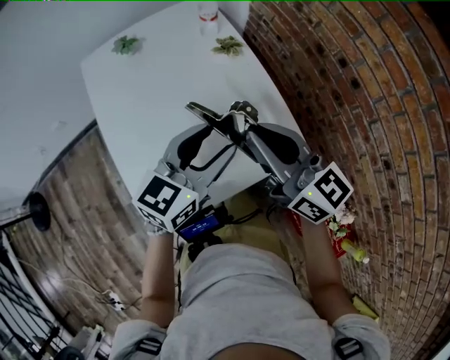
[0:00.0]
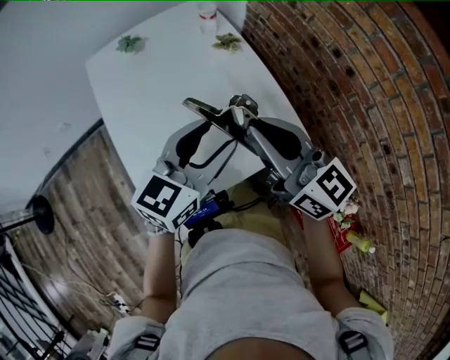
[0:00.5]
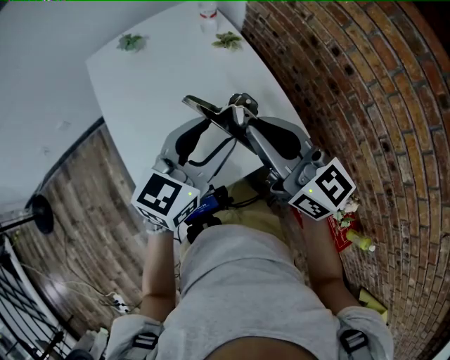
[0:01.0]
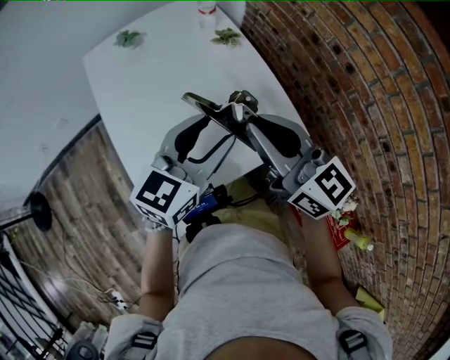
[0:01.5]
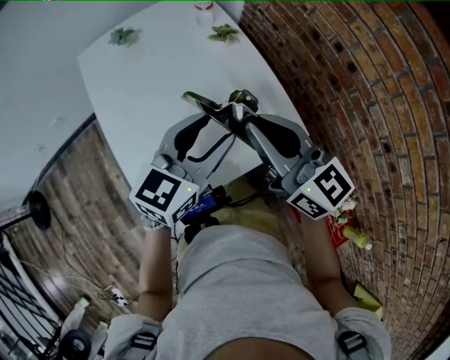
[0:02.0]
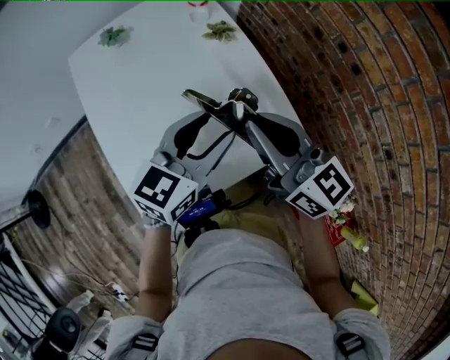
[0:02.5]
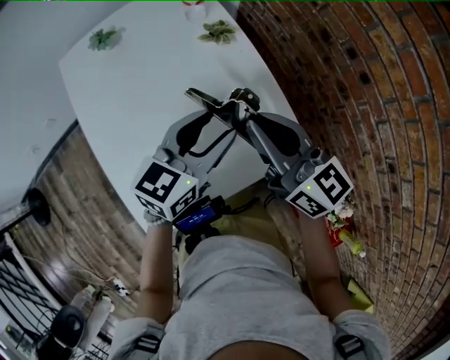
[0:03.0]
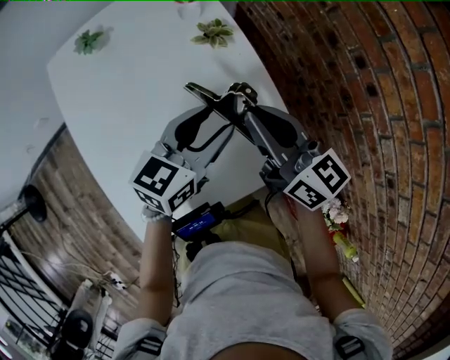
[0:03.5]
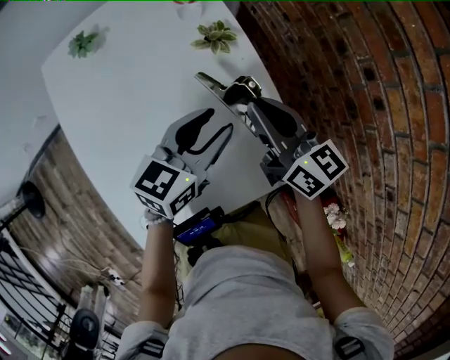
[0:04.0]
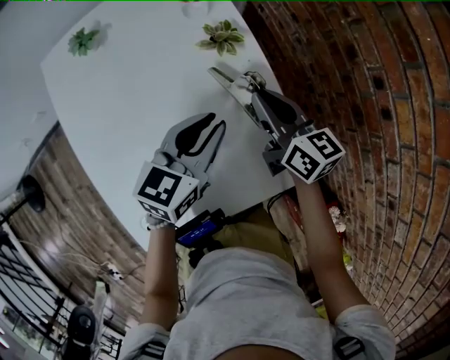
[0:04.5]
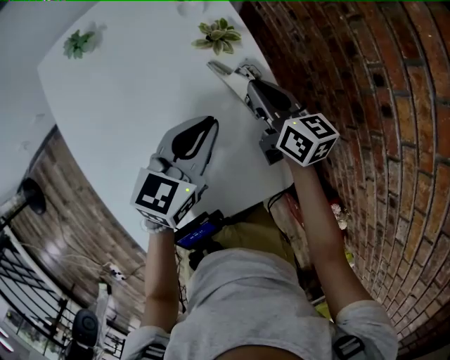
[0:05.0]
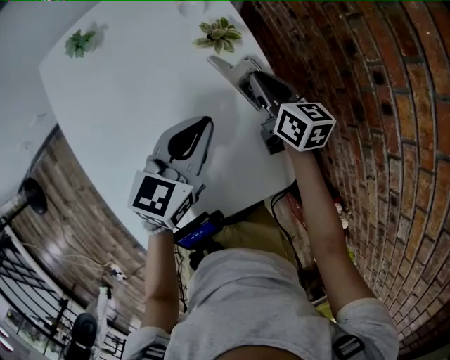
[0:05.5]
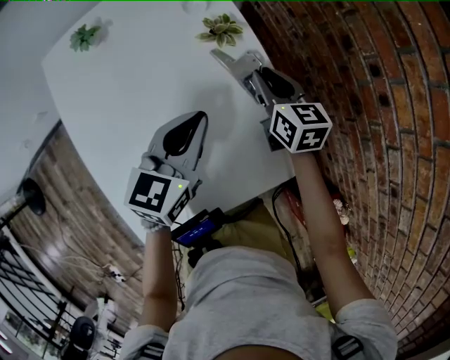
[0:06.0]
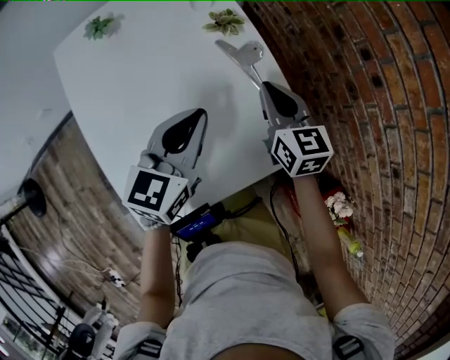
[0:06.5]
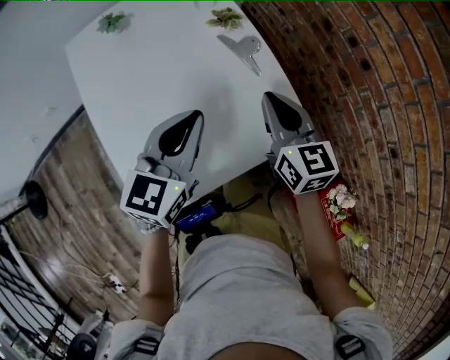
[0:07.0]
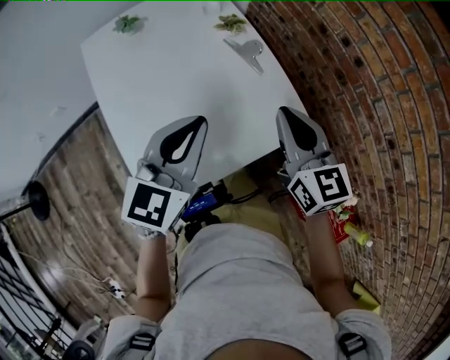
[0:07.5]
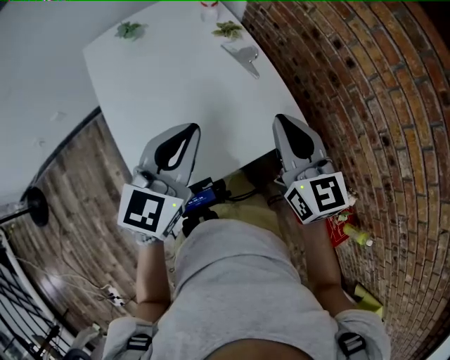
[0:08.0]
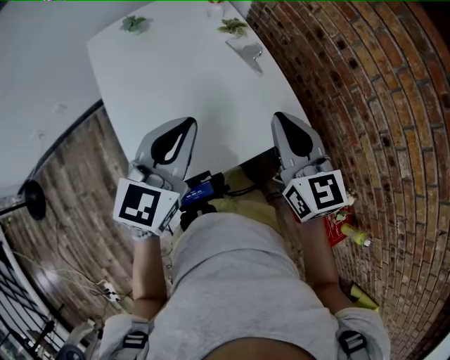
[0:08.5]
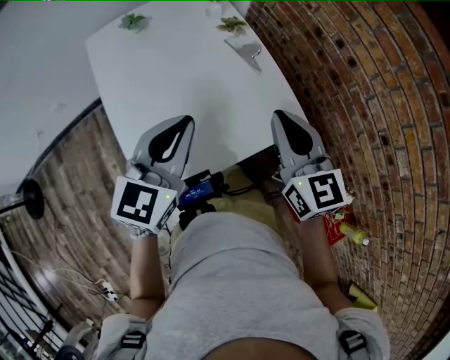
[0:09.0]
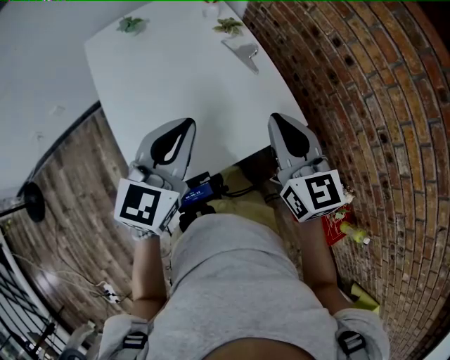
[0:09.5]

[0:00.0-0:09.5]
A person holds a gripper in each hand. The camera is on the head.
0:00.0 to 0:02.0: The grippers stay close to where they were, moving slightly.
0:02.0 to 0:04.0: Both grippers travel together forward and downward, about 20 cm.
0:04.0 to 0:05.5: The left gripper closes its fingers. Meanwhile the right gripper shifts some 15 cm downward and forward.
0:05.5 to 0:07.5: Both grippers travel together backward and upward, approximately 25 cm. The right gripper swivels about 30 degrees; the left gripper turns by about 20 degrees.
0:07.5 to 0:09.5: The grippers stay close to where they were, moving slightly.

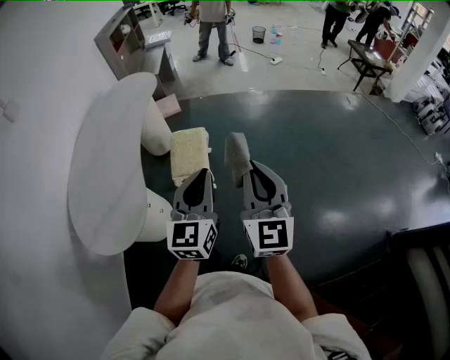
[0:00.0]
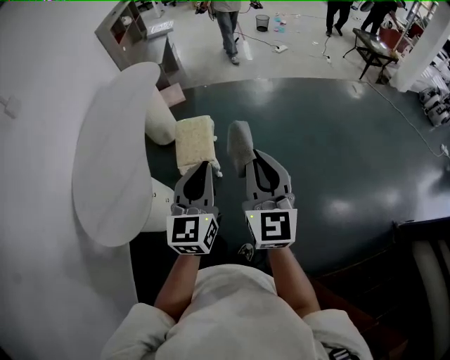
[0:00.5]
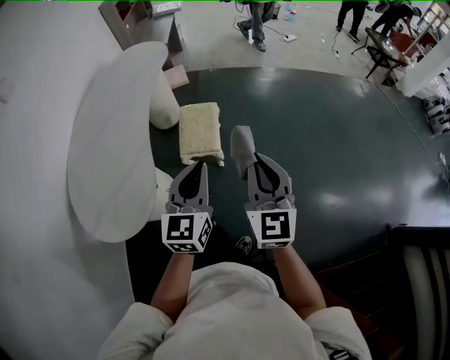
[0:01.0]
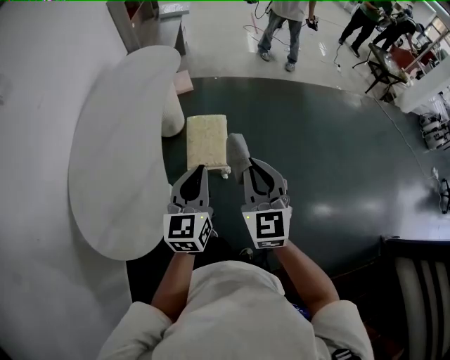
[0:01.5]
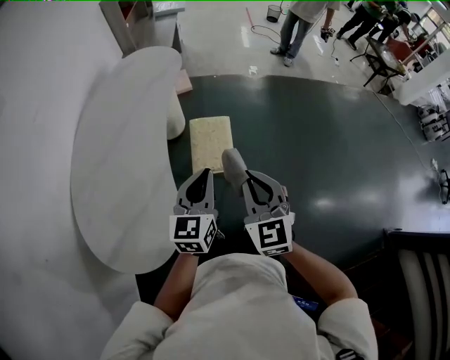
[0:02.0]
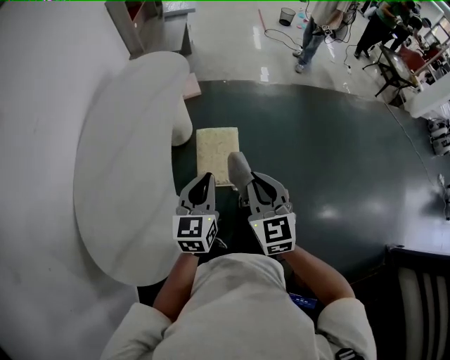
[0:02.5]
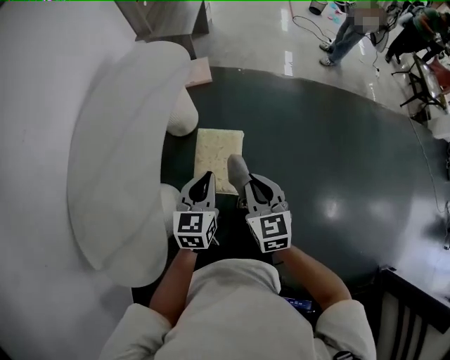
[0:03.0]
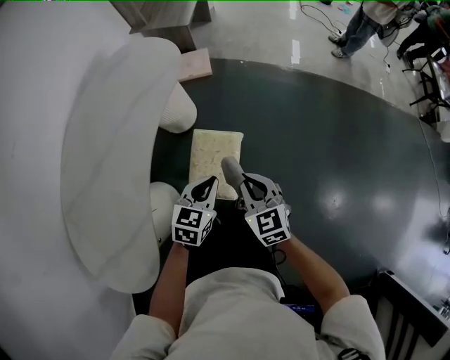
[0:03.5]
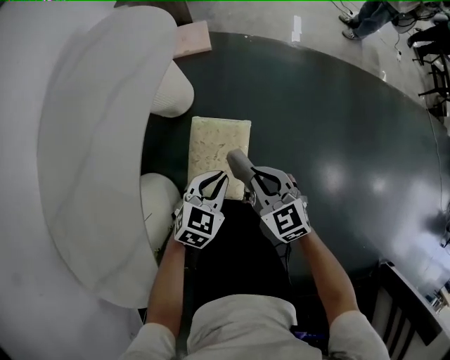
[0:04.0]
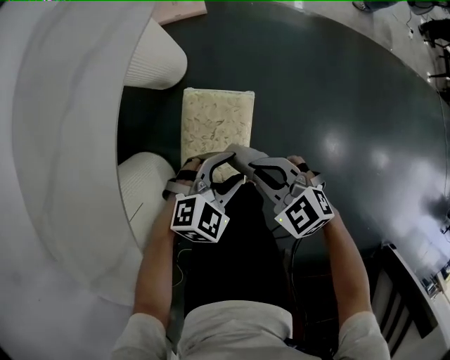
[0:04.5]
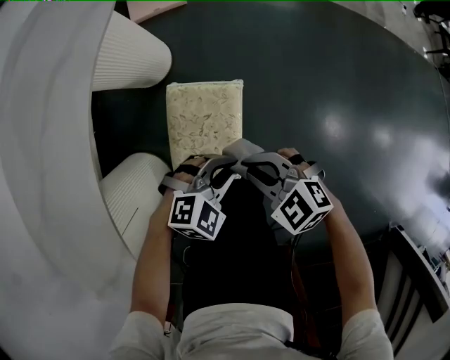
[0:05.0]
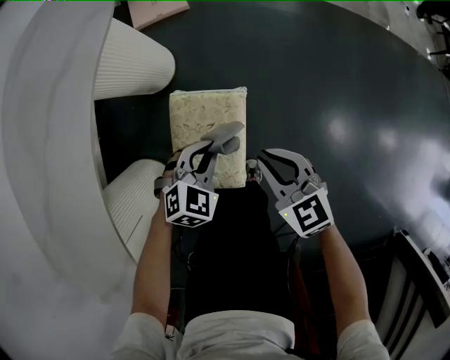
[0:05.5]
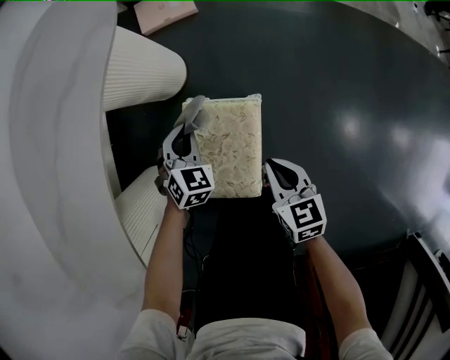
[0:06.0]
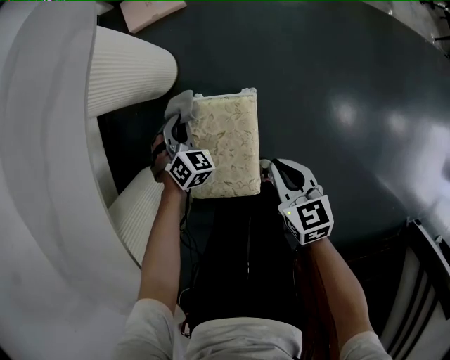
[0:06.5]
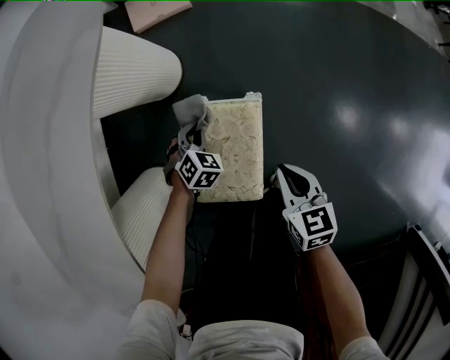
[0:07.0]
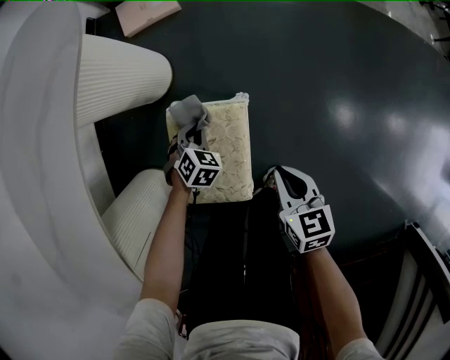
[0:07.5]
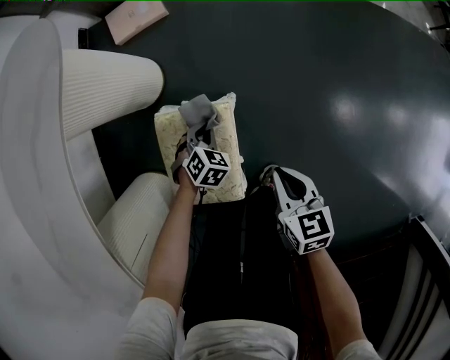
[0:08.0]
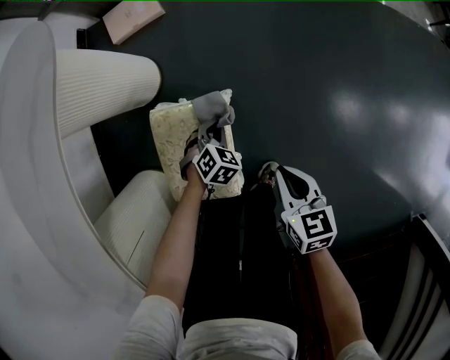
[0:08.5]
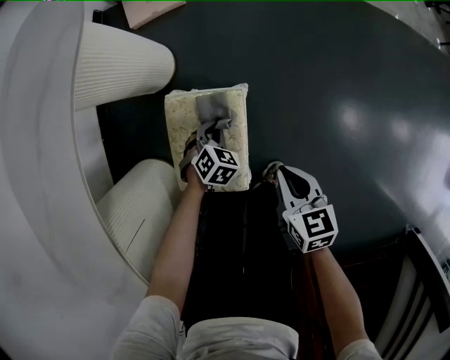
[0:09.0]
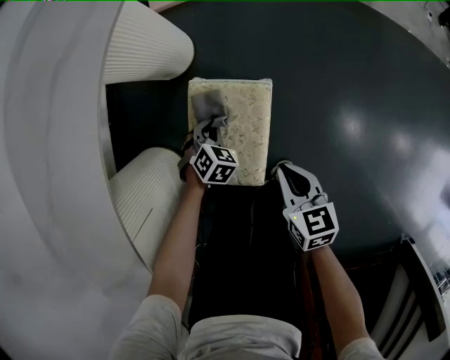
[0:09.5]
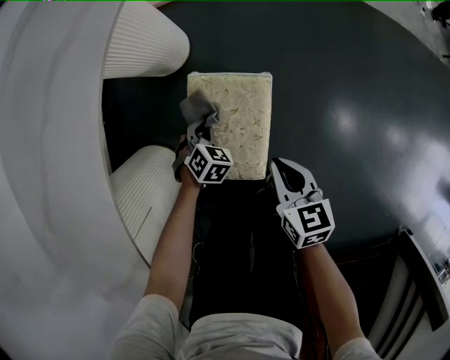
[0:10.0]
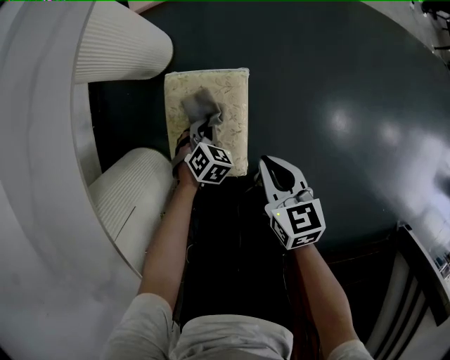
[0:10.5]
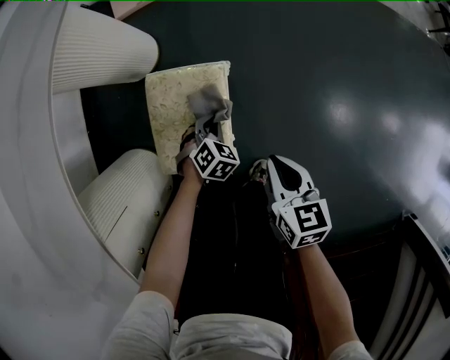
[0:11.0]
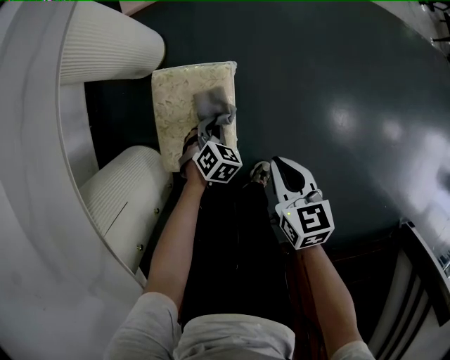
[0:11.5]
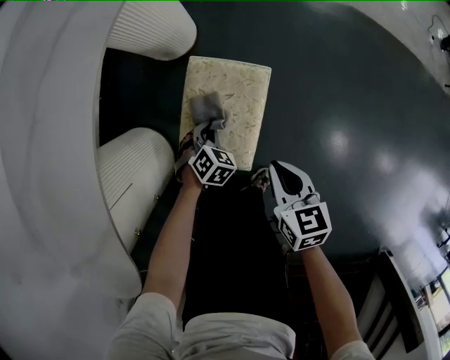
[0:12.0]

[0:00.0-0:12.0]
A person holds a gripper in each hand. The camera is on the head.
0:00.0 to 0:02.0: The grippers both shift to the left, forward and downward by approximately 30 cm. The right gripper changes its angle by some 20 degrees.
0:02.0 to 0:04.0: The left gripper is displaced downward and forward by some 40 cm, and points its fingers some 30 degrees further downward. The right gripper goes about 50 cm forward and downward, and turns by roughly 30 degrees.
0:04.0 to 0:06.0: Both grippers move downward, roughly 20 cm. The right gripper turns by about 30 degrees. The left gripper swivels about 30 degrees, and opens, then closes again.
0:06.0 to 0:08.0: The left gripper is displaced downward and to the right by approximately 15 cm, and turns by roughly 20 degrees. Meanwhile the right gripper goes roughly 10 cm to the right.
0:08.0 to 0:10.0: The grippers both shift to the left by roughly 15 cm.
0:10.0 to 0:12.0: The left gripper travels backward by roughly 5 cm, and travels to the right and back again, roughly 15 cm each way. The right gripper reaches some 10 cm to the right, then returns.

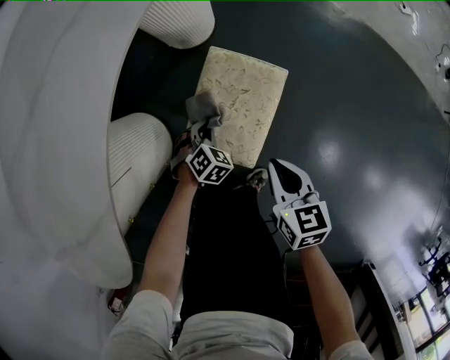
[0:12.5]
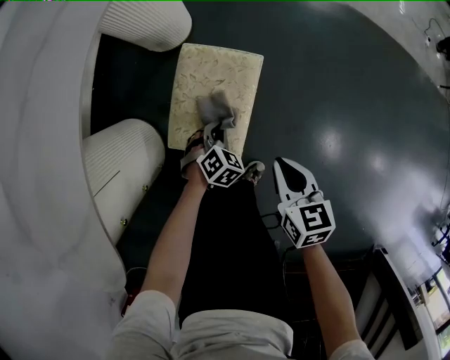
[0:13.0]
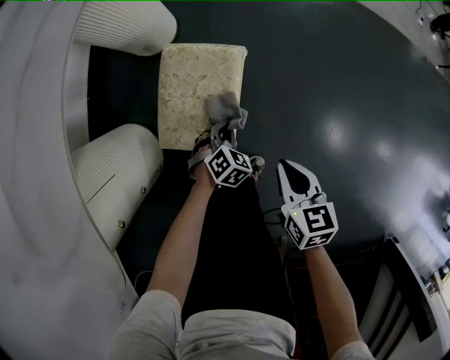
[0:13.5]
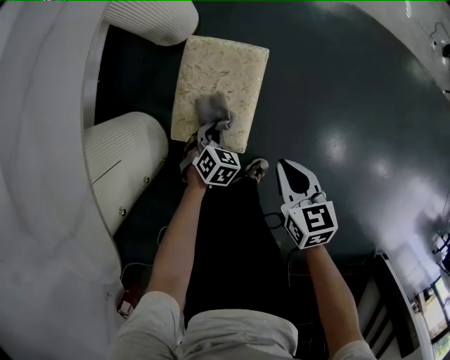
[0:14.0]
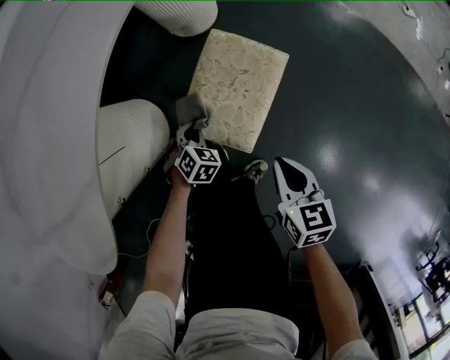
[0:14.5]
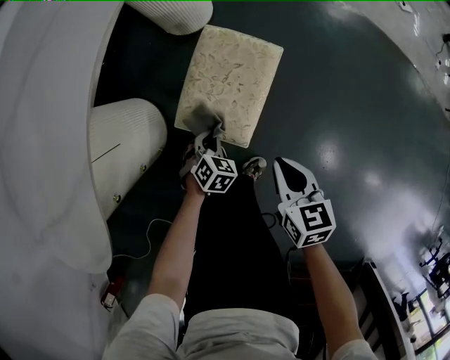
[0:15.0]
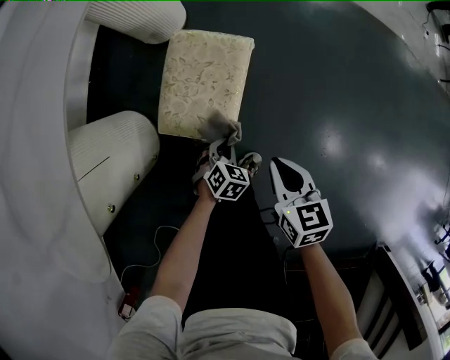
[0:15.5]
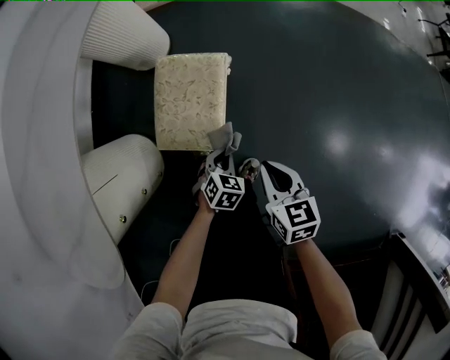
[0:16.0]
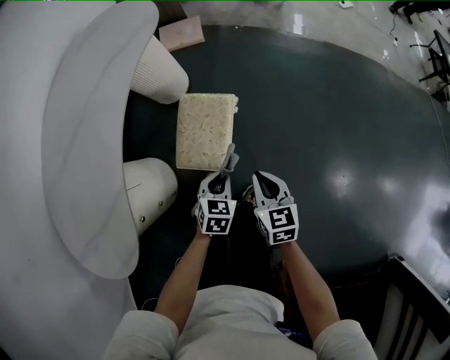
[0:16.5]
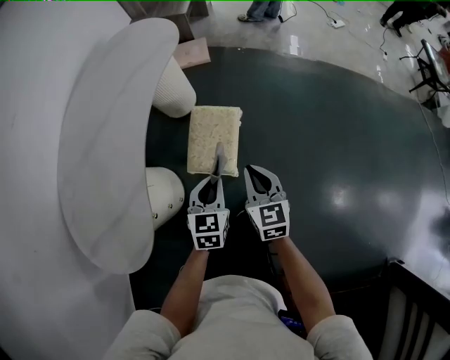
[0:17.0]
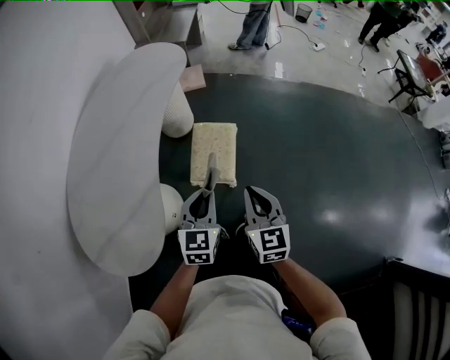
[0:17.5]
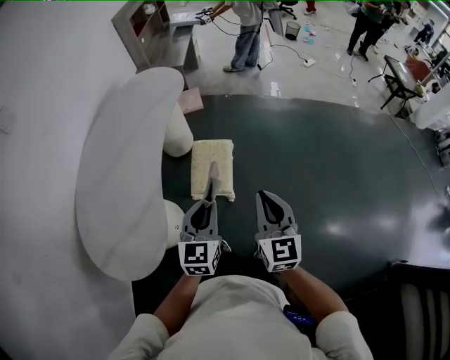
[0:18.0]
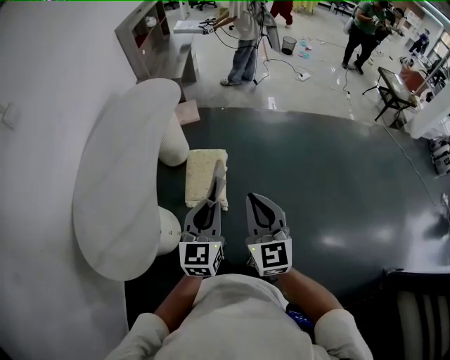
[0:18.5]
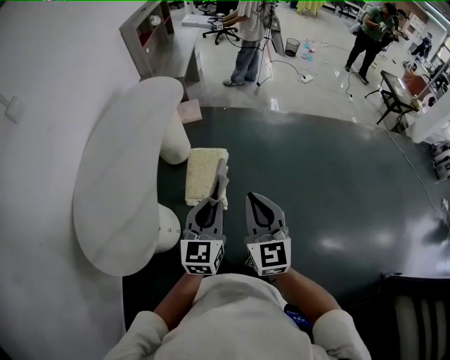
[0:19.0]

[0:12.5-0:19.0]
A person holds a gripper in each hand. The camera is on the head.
0:14.5 to 0:17.0: The left gripper moves upward, roughly 40 cm, and swivels about 40 degrees, while the right gripper heads upward, covering about 25 cm, and turns by some 30 degrees.
0:17.0 to 0:19.0: The grippers both shift upward and backward by some 30 cm. The right gripper rotates some 20 degrees; the left gripper swivels some 30 degrees.
